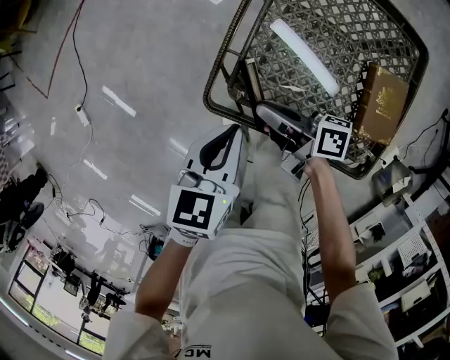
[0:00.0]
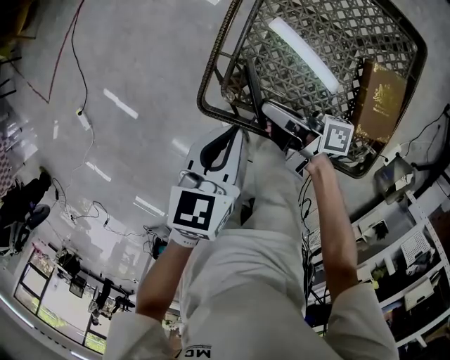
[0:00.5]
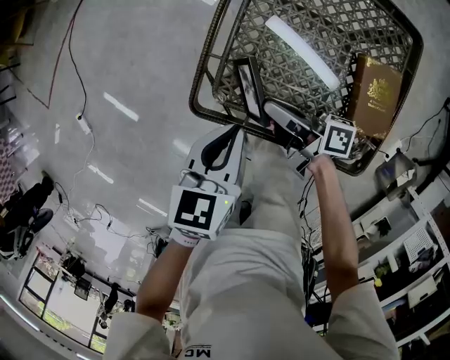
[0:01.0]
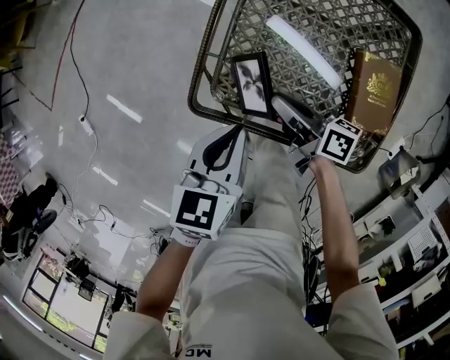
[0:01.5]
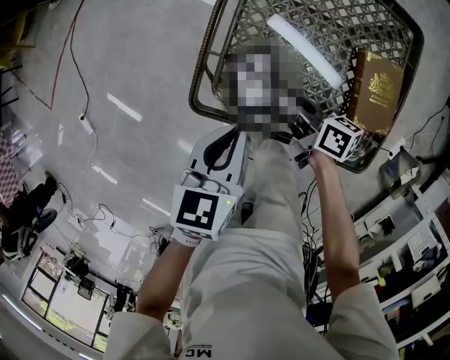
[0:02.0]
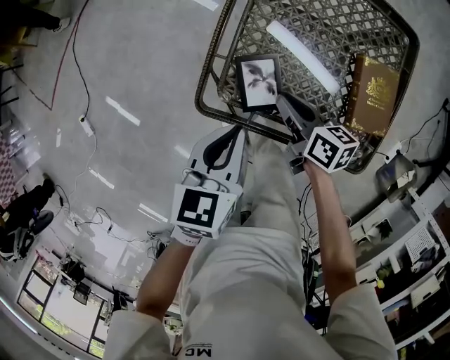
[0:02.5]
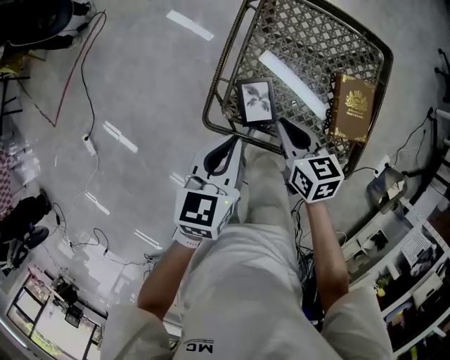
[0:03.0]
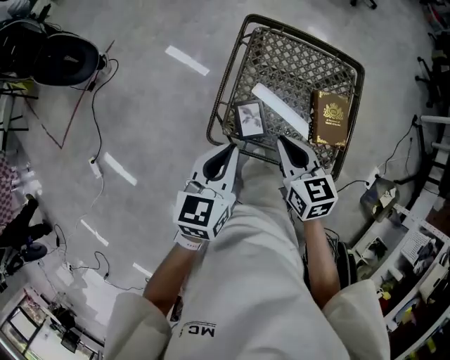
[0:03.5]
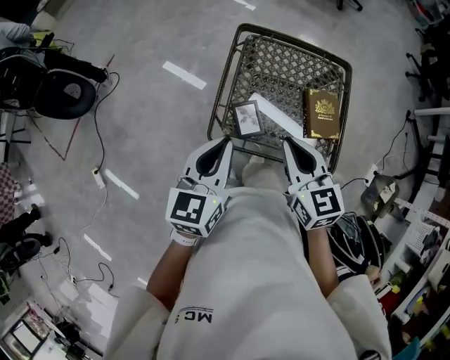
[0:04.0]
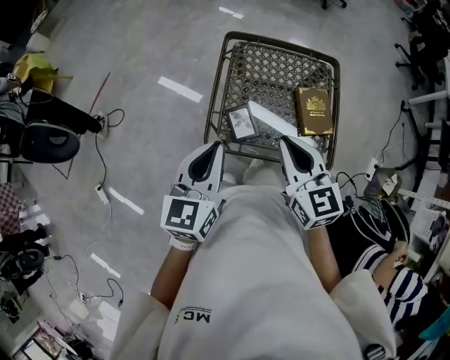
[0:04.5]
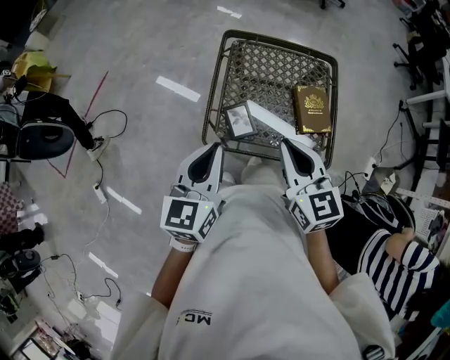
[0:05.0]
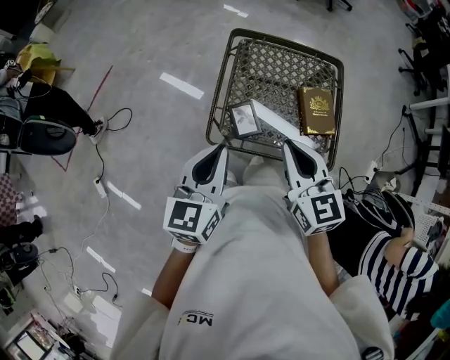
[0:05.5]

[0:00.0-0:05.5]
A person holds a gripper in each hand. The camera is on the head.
0:00.0 to 0:02.0: The right gripper travels to the right by roughly 10 cm, and turns by some 20 degrees. The left gripper ends up about 5 cm from where it was.
0:02.0 to 0:03.5: Both grippers move upward, approximately 20 cm. The right gripper twists some 40 degrees counterclockwise, seen from behind.
0:03.5 to 0:05.5: The right gripper heads upward and backward, covering some 15 cm. The left gripper is displaced upward and backward by approximately 10 cm.

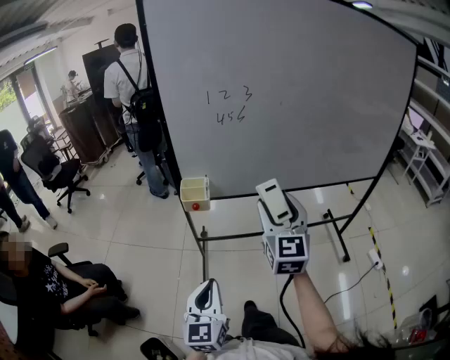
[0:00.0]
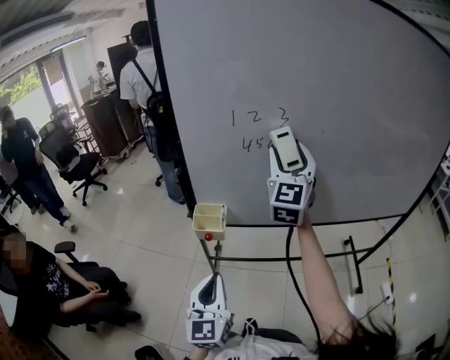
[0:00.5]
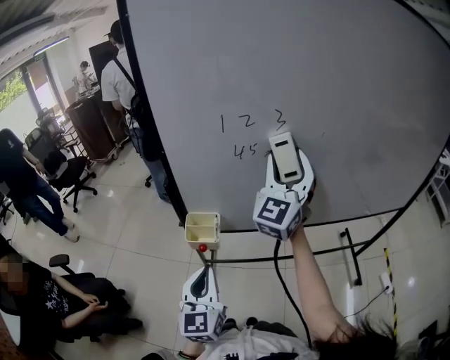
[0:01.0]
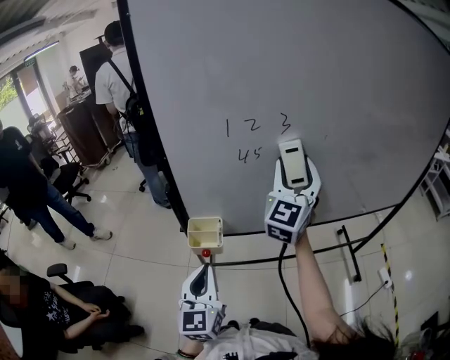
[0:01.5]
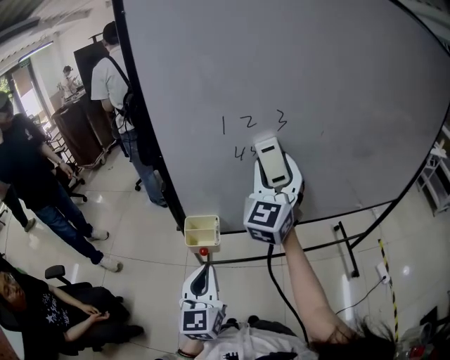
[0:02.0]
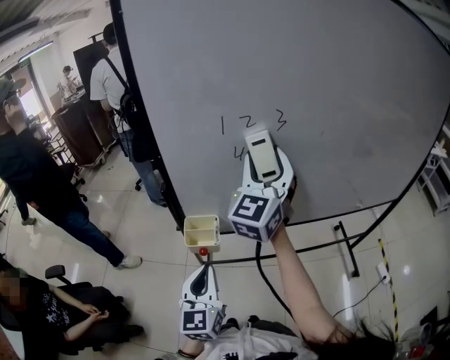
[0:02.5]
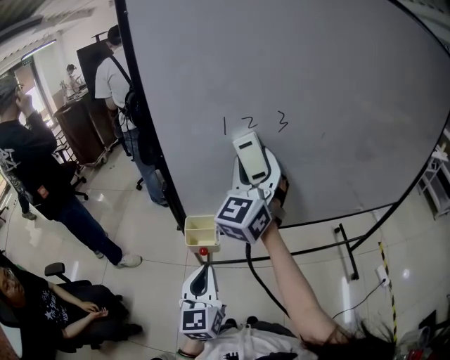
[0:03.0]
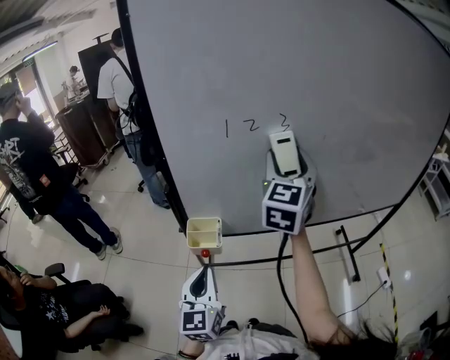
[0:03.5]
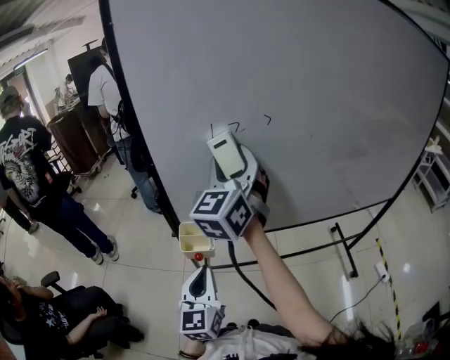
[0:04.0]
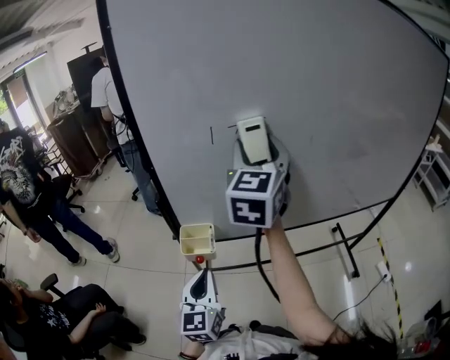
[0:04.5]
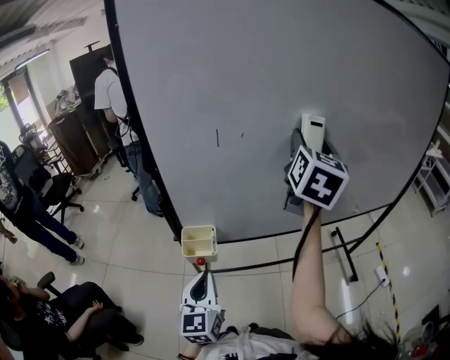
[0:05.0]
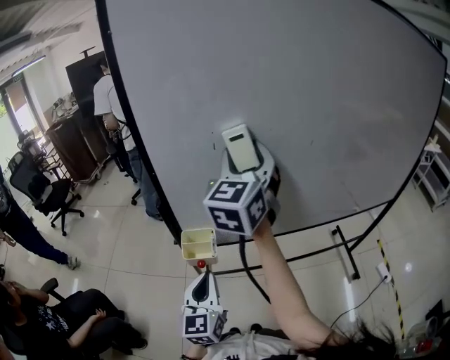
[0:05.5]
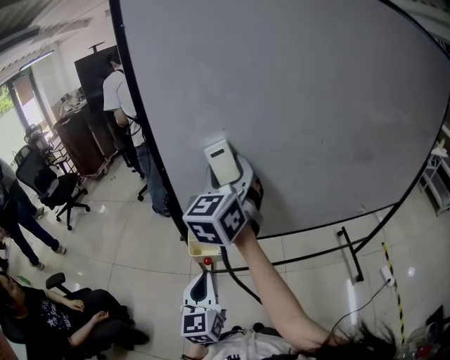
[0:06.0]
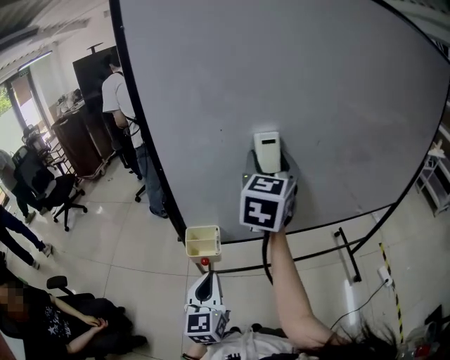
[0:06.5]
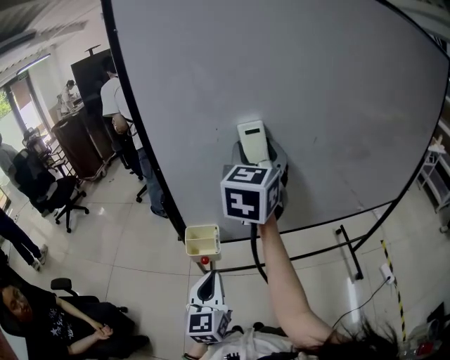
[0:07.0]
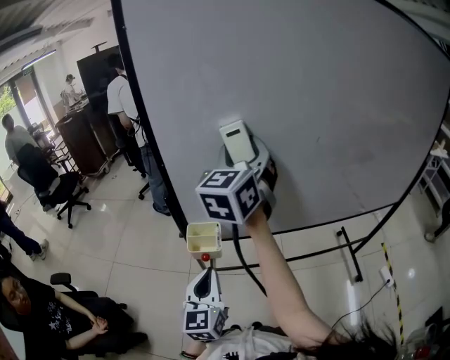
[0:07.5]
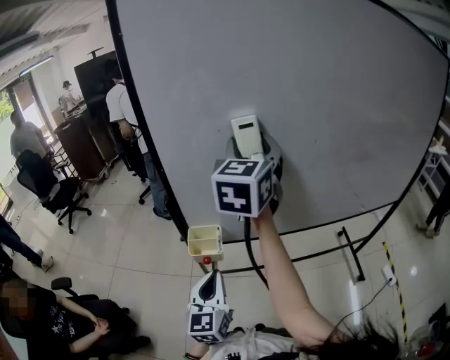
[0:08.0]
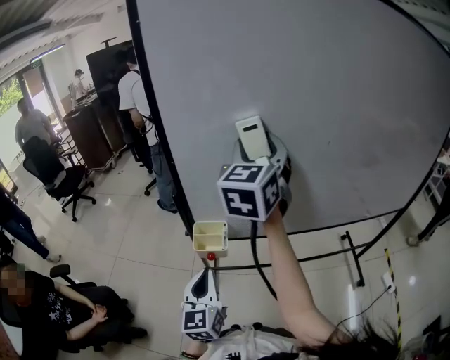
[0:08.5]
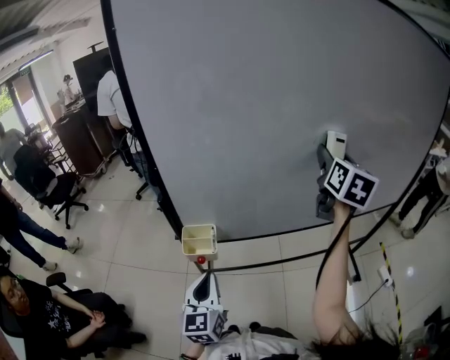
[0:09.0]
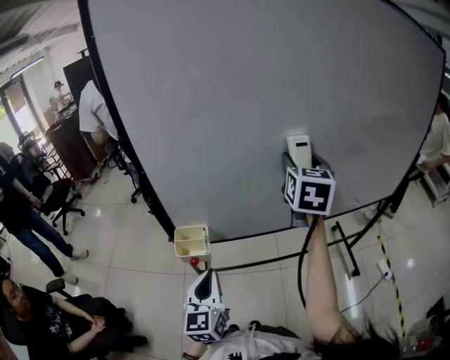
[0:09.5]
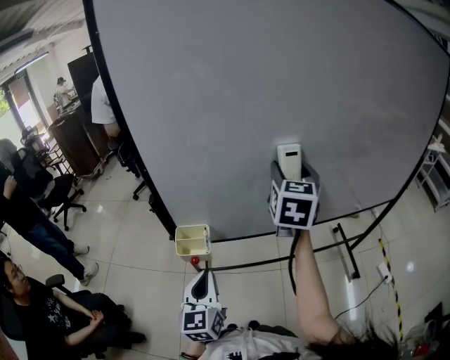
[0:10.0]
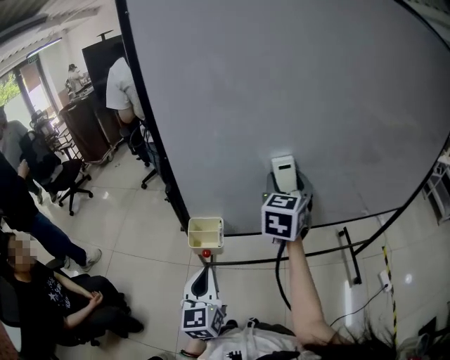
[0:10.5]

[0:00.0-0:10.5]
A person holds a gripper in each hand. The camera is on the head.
0:00.0 to 0:02.0: The grippers both shift forward by approximately 25 cm. The right gripper swivels roughly 20 degrees.
0:02.0 to 0:04.0: The right gripper goes left and right, some 10 cm each way, reversing 2 times.
0:04.0 to 0:06.5: The right gripper goes left and right, roughly 25 cm each way, reversing 2 times, and swivels approximately 20 degrees.
0:06.5 to 0:08.5: The right gripper heads to the left, covering roughly 5 cm.
0:08.5 to 0:10.5: The right gripper moves downward and to the right, roughly 15 cm.

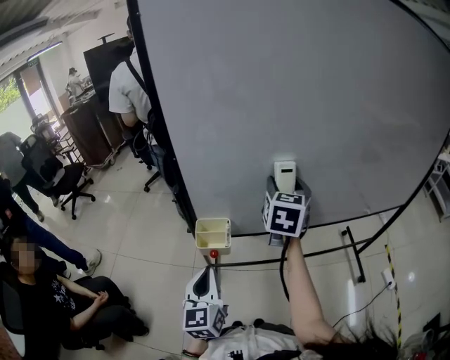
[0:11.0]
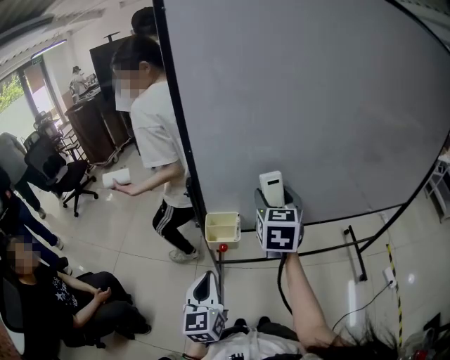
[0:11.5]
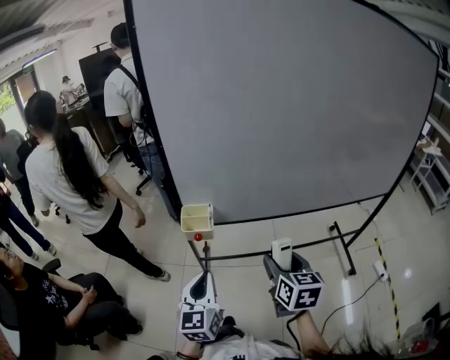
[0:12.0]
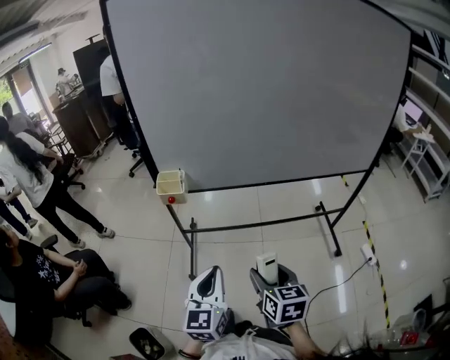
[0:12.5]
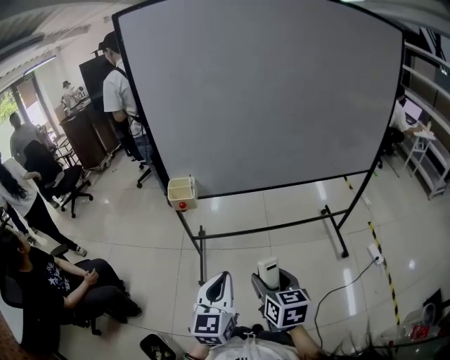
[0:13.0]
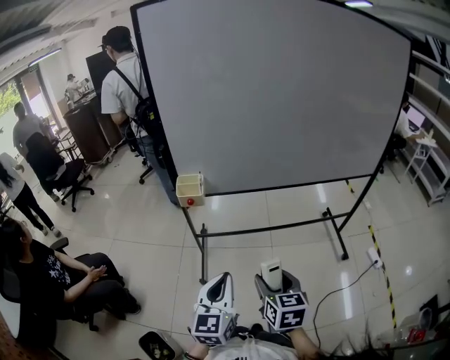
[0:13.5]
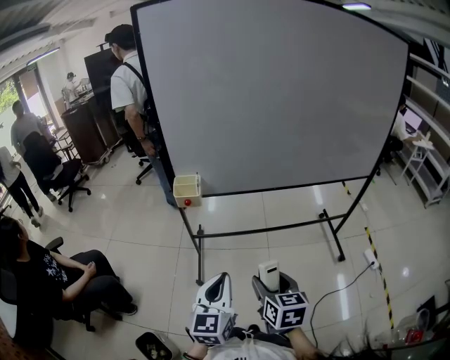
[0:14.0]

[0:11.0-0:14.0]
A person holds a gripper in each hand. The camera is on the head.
0:11.0 to 0:12.5: The left gripper moves backward and to the right, roughly 30 cm. The right gripper heads backward and downward, covering approximately 50 cm, and rotates some 30 degrees.
0:12.5 to 0:14.0: The right gripper is displaced to the left by about 5 cm. Meanwhile the left gripper ends up about 5 cm from where it was.

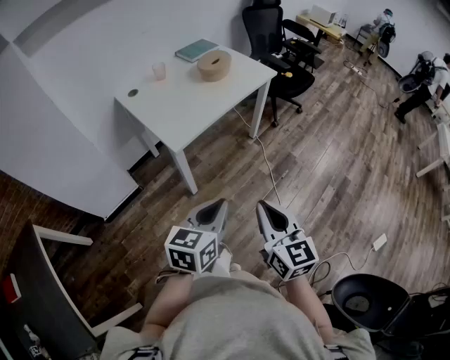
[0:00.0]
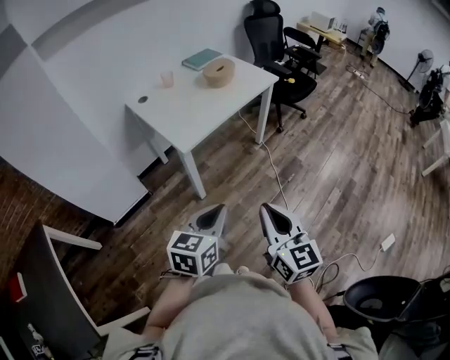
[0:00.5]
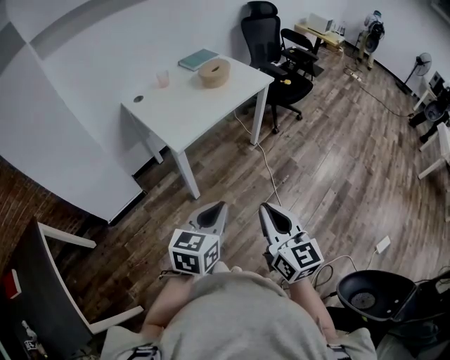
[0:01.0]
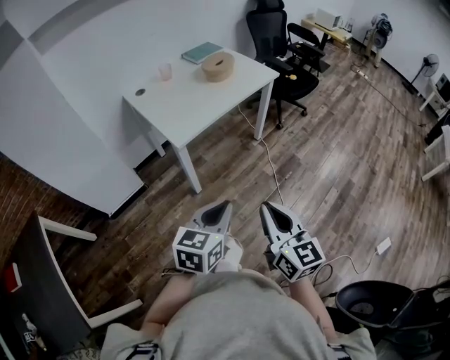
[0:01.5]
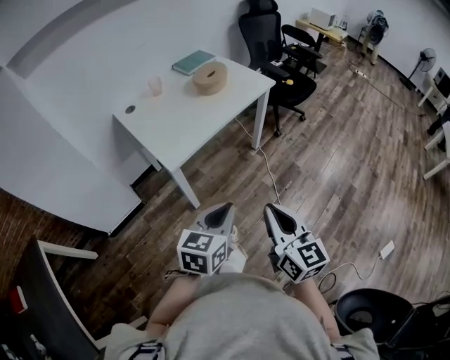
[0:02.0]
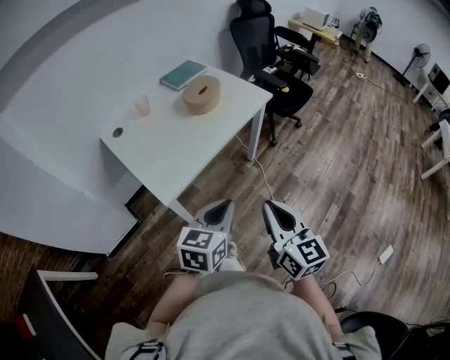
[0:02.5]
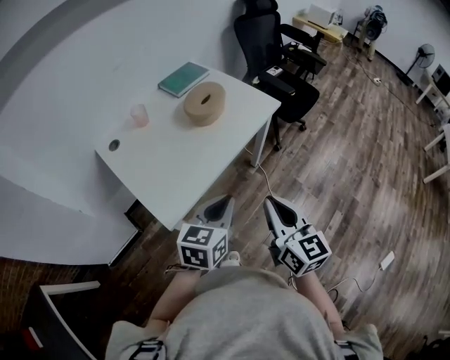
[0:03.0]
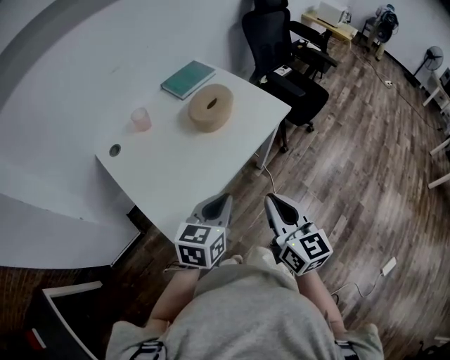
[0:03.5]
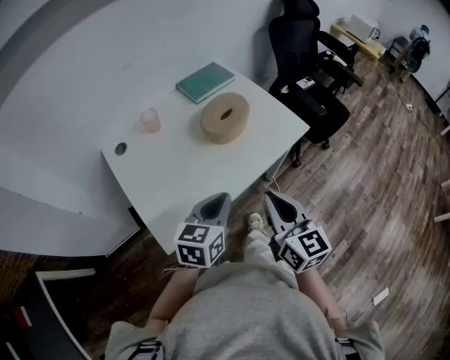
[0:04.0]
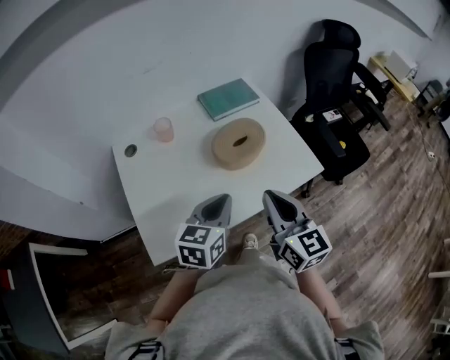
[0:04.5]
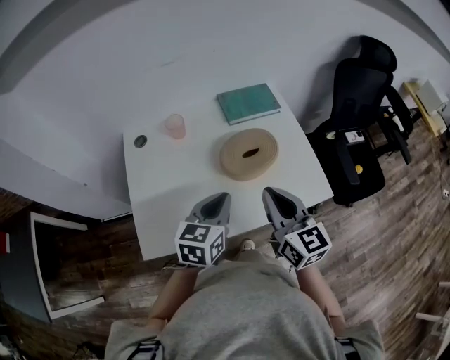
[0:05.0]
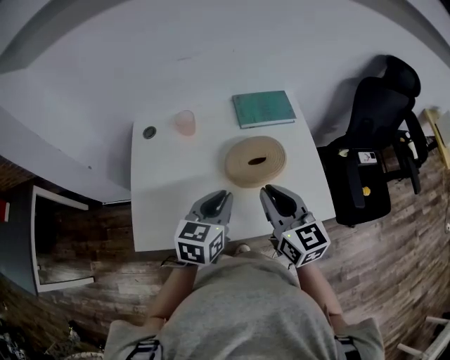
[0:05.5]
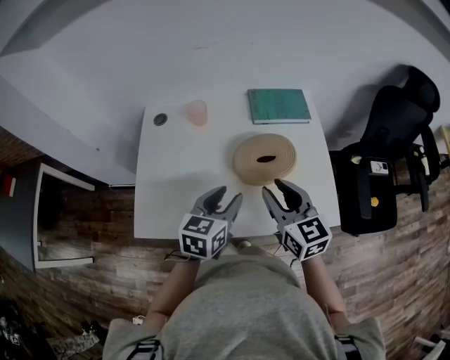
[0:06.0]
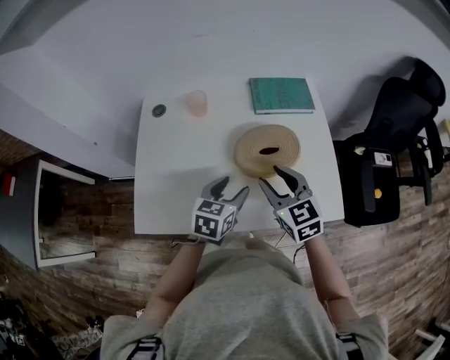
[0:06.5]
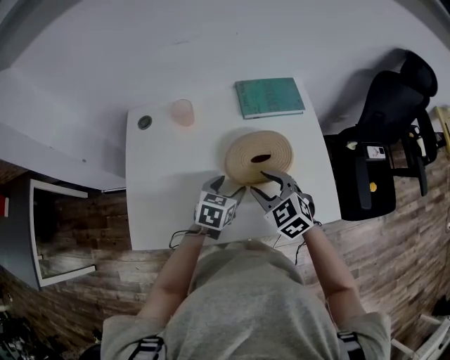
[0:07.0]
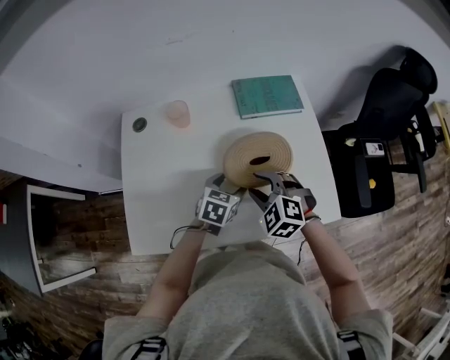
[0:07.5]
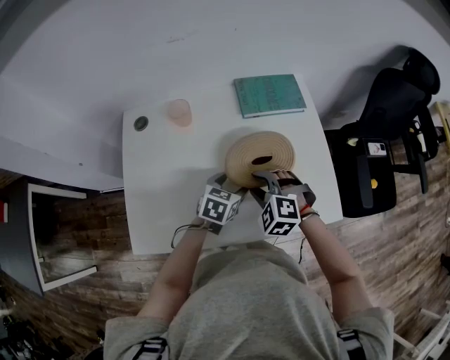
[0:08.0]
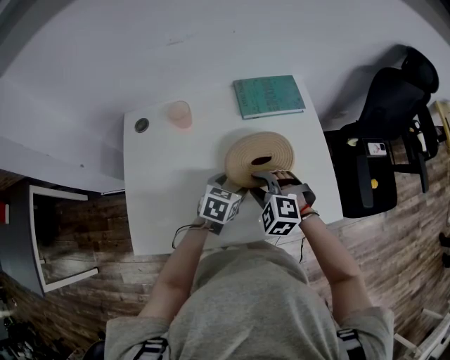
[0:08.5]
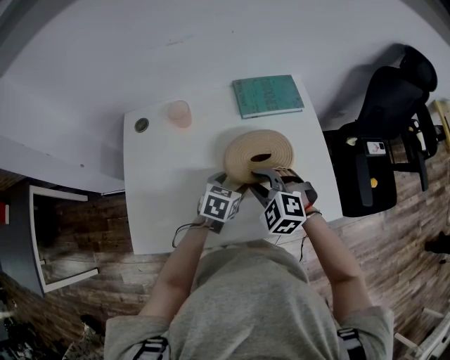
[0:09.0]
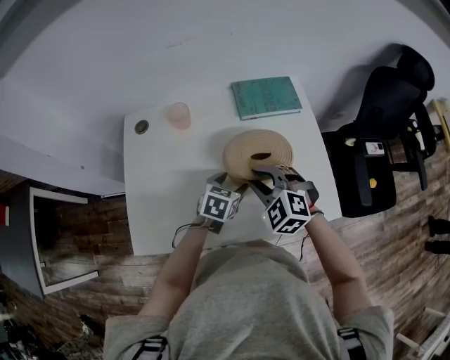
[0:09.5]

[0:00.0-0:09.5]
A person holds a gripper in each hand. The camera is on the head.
0:00.0 to 0:02.0: The two grippers go about 5 cm forward.
0:02.0 to 0:04.0: The two grippers travel together, forward, roughly 40 cm.
0:04.0 to 0:05.5: The left gripper moves about 20 cm, and turns by roughly 30 degrees. Meanwhile the right gripper moves roughly 25 cm, and swivels about 30 degrees.
0:05.5 to 0:07.5: Both grippers travel together downward and forward, roughly 20 cm. The right gripper tips its fingers downward by about 40 degrees, and opens up; the left gripper changes its angle by some 20 degrees, and opens up.
0:07.5 to 0:09.5: The grippers make only small movements.
